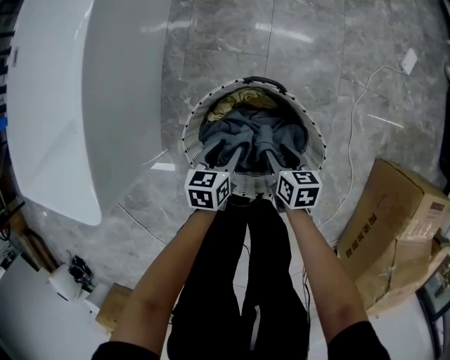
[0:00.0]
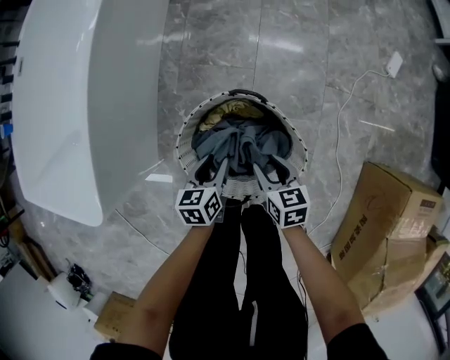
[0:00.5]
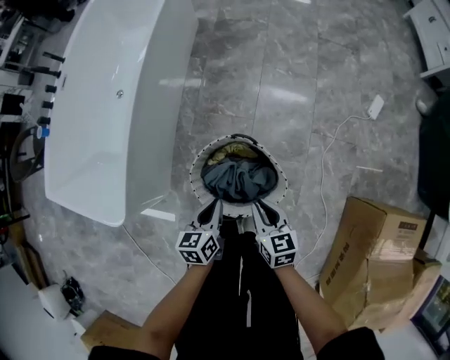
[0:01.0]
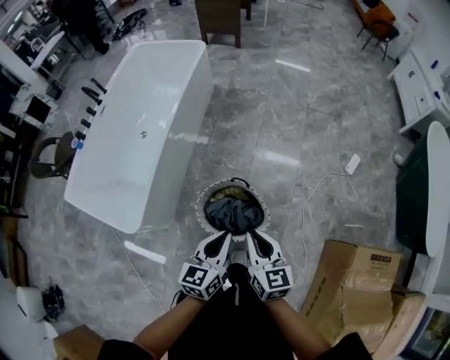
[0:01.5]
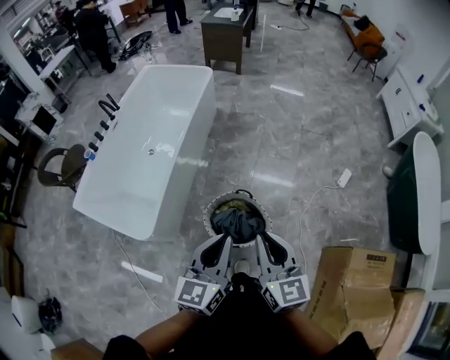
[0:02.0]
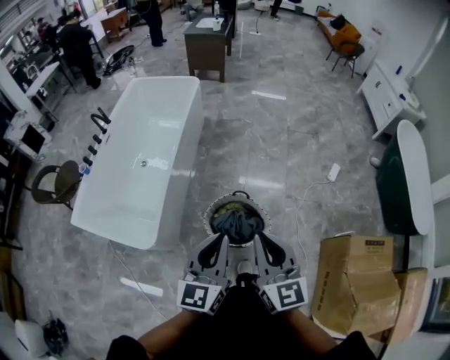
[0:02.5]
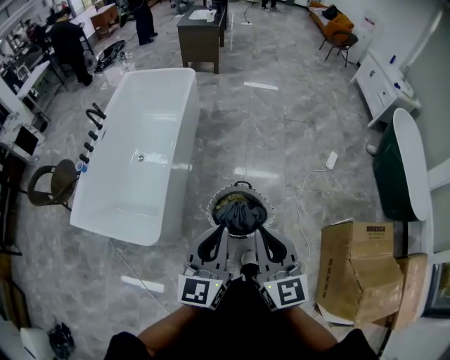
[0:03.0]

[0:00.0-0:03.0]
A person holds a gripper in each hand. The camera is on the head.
0:00.0 to 0:01.5: Both grippers travel together upward, some 60 cm. The right gripper points its fingers roughly 30 degrees further upward, and closes. The left gripper rotates about 30 degrees, and closes up.
0:01.5 to 0:03.0: The grippers both shift upward, to the left and backward by some 30 cm. The right gripper swivels approximately 20 degrees. The left gripper turns by about 20 degrees.

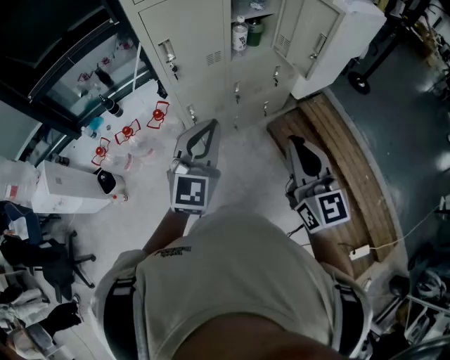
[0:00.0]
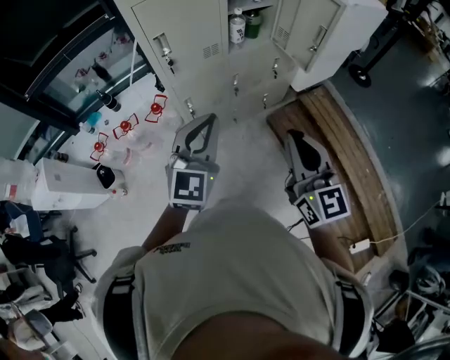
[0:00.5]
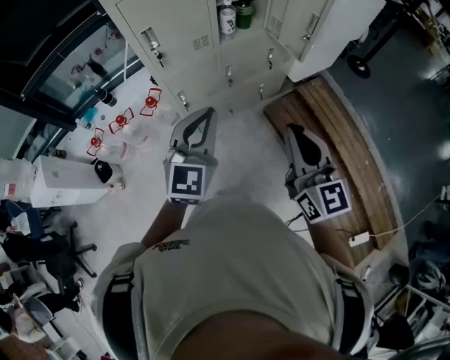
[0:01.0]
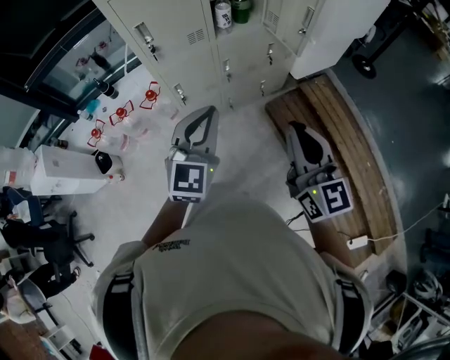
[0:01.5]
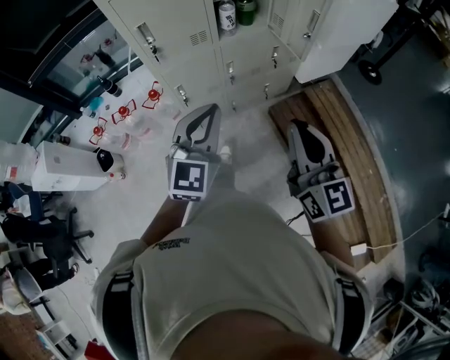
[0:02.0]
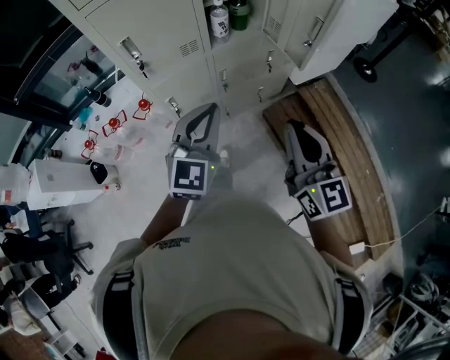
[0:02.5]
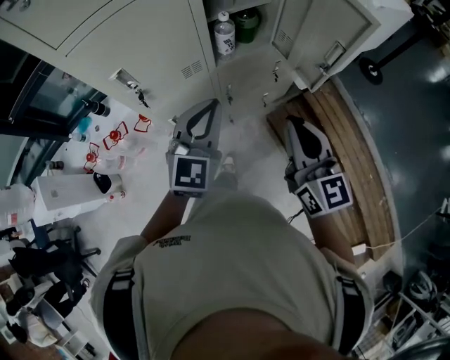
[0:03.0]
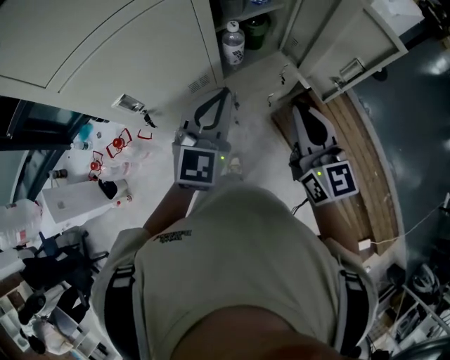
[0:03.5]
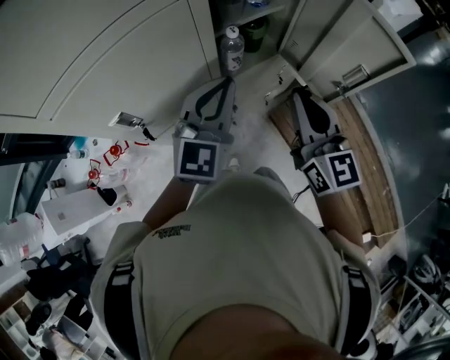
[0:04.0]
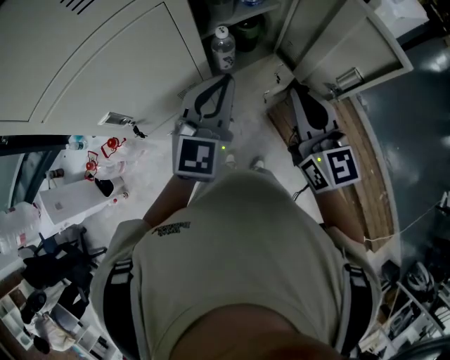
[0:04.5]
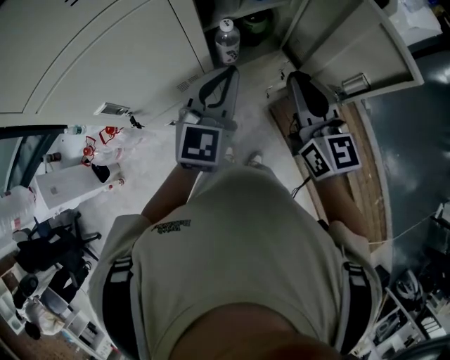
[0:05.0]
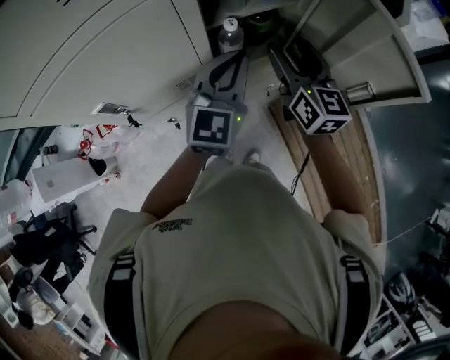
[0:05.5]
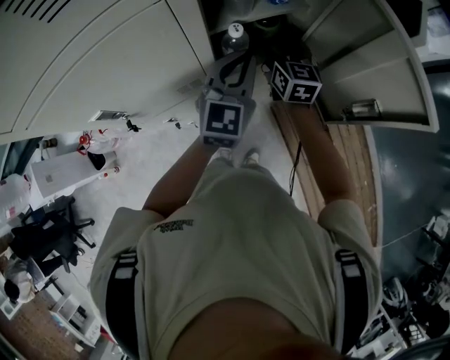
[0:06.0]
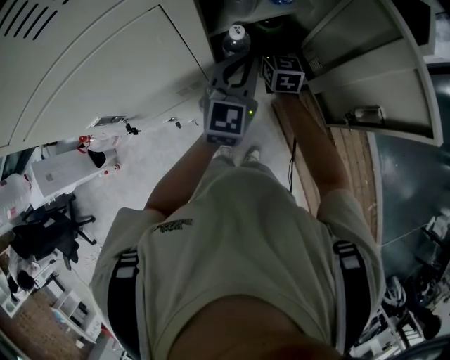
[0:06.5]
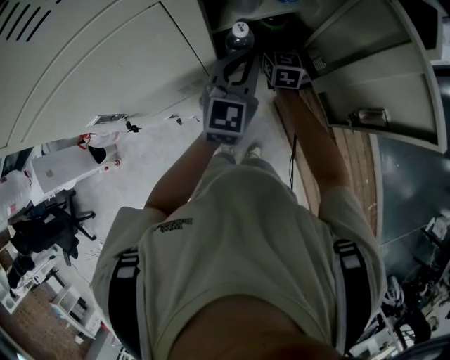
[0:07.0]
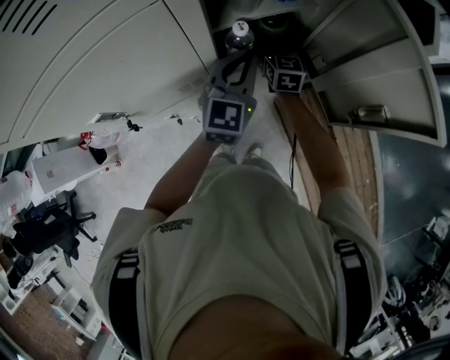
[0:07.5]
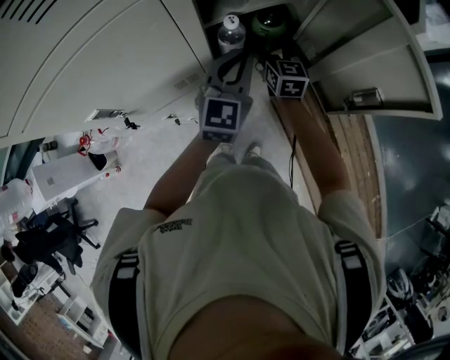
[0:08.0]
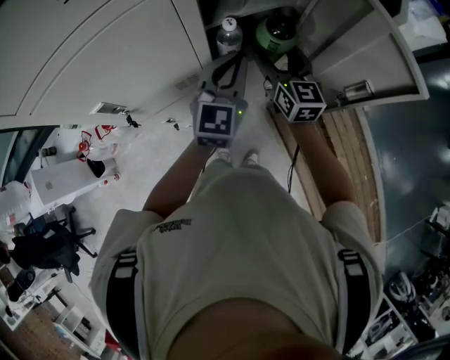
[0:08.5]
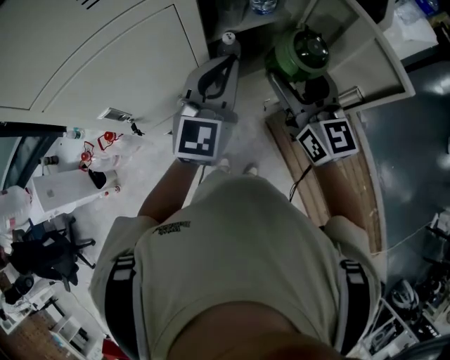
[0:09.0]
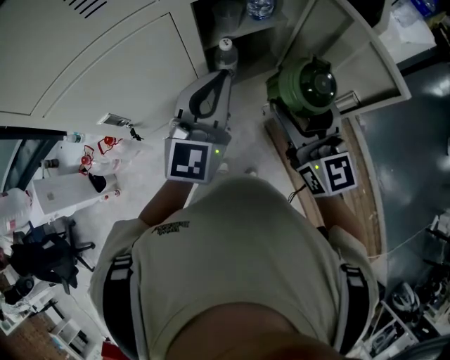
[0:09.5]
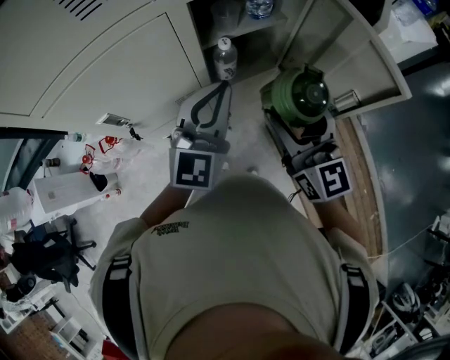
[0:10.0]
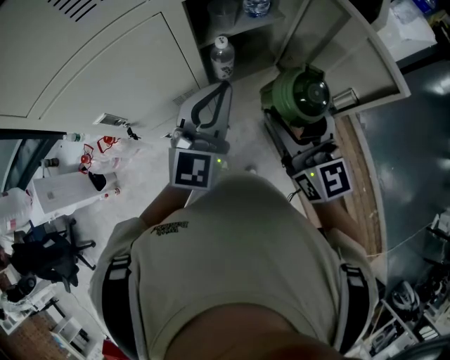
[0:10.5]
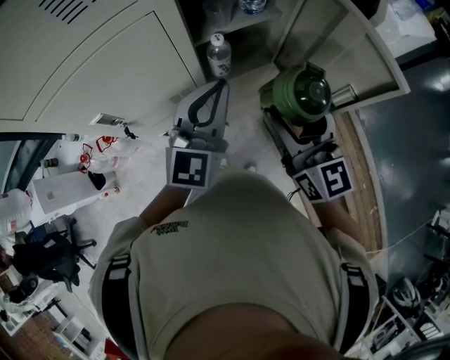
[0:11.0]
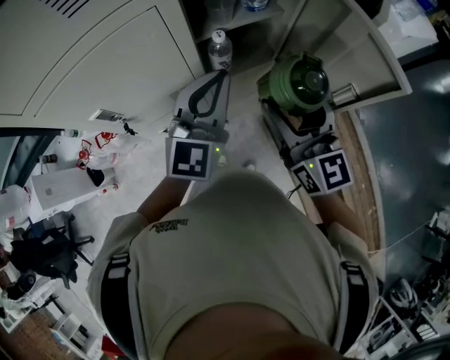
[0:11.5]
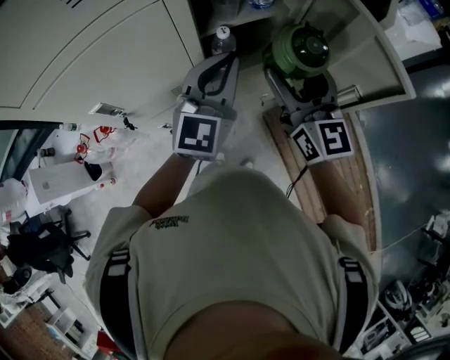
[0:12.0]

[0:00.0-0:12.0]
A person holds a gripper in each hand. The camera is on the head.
0:00.0 to 0:02.0: Both grippers move to the right, roughly 10 cm.
0:02.0 to 0:04.0: Both grippers move forward, roughly 35 cm.
0:04.0 to 0:06.0: The left gripper travels forward, downward and to the right by approximately 15 cm. The right gripper is displaced forward and downward by about 30 cm, and opens up.
0:06.0 to 0:08.0: The right gripper travels downward by some 5 cm.
0:08.0 to 0:10.0: The left gripper is displaced upward and backward by about 15 cm. The right gripper shifts approximately 30 cm upward and backward, and rotates some 20 degrees.
0:10.0 to 0:12.0: The right gripper is displaced forward by about 5 cm.

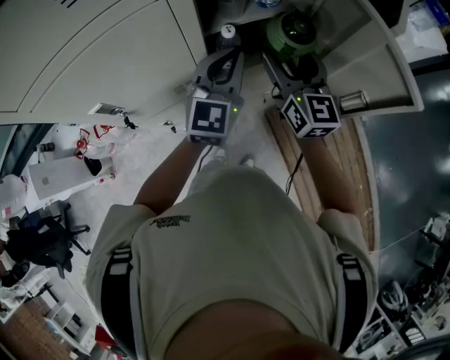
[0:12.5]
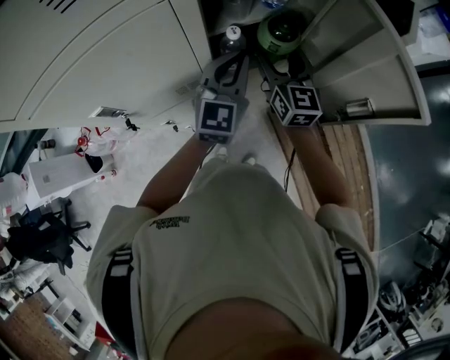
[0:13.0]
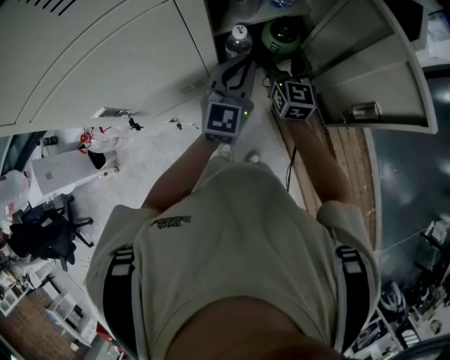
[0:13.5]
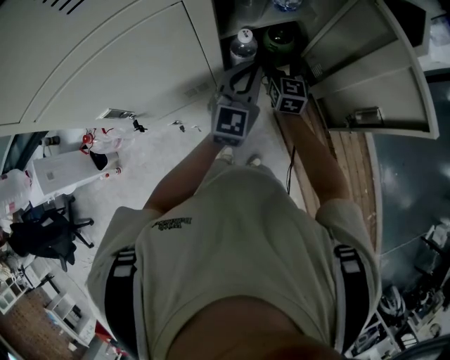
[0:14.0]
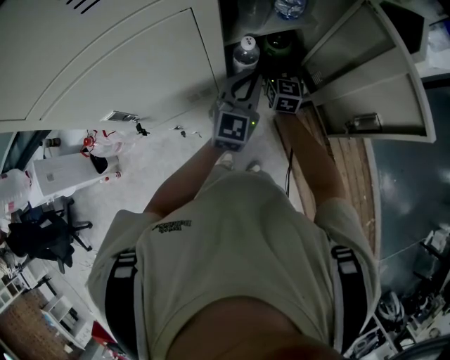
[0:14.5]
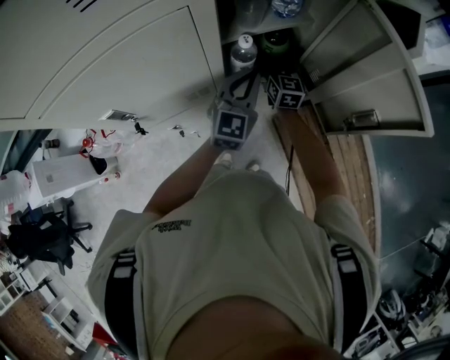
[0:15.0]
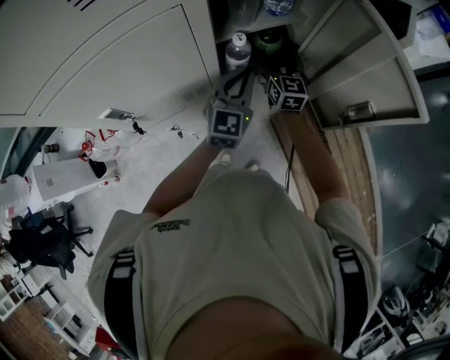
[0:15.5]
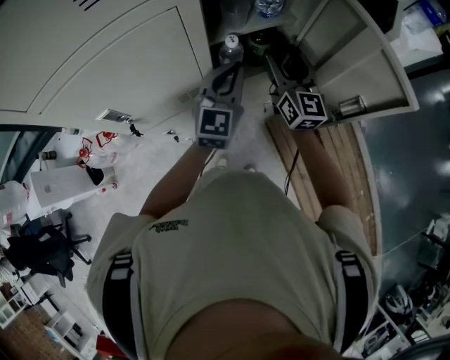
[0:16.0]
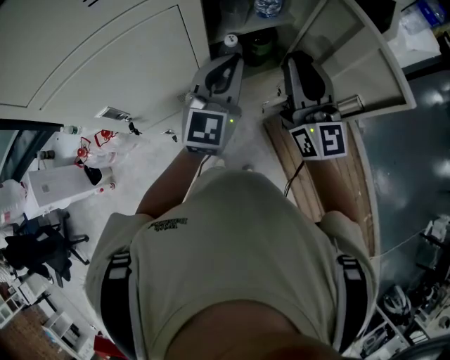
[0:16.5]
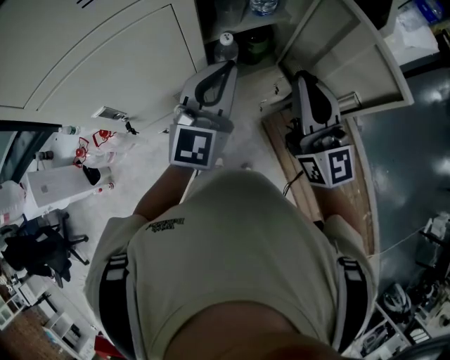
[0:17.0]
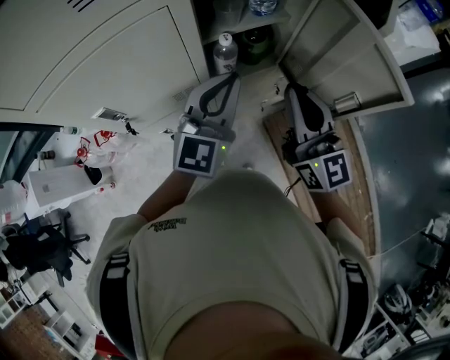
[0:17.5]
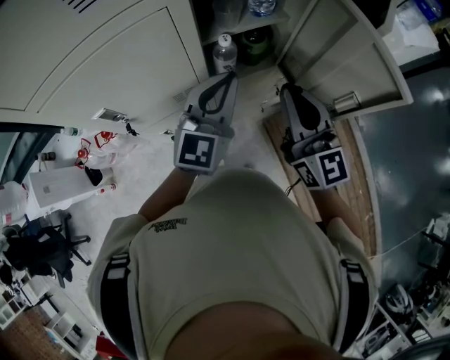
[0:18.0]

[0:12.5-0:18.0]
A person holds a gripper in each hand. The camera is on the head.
0:12.5 to 0:14.5: The right gripper shifts roughly 20 cm downward and forward; the left gripper is displaced downward by roughly 10 cm.
0:14.5 to 0:16.0: The right gripper goes about 15 cm upward and backward.
0:16.0 to 0:18.0: The right gripper shifts roughly 15 cm backward and upward, and closes, while the left gripper is displaced backward and upward by about 10 cm.

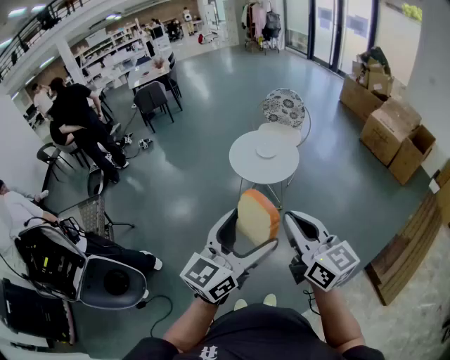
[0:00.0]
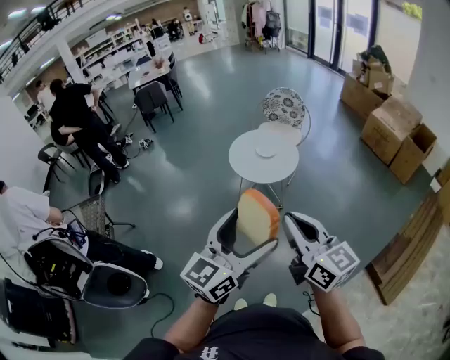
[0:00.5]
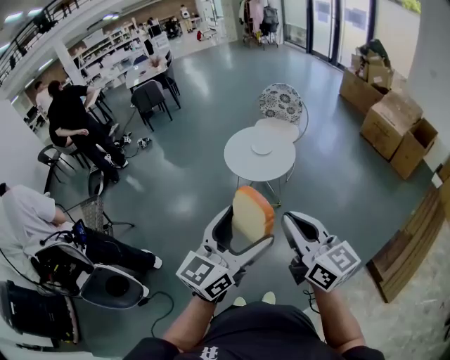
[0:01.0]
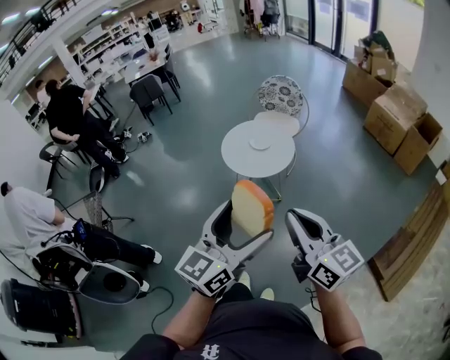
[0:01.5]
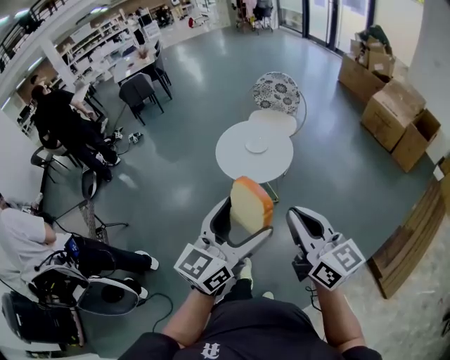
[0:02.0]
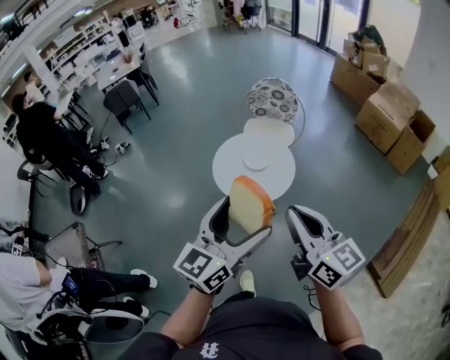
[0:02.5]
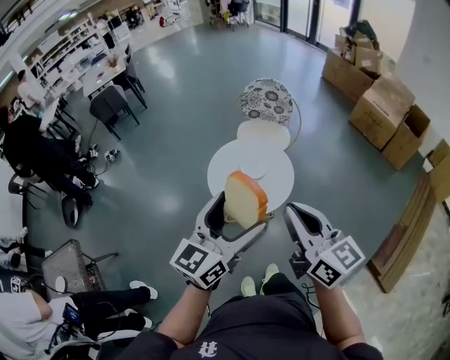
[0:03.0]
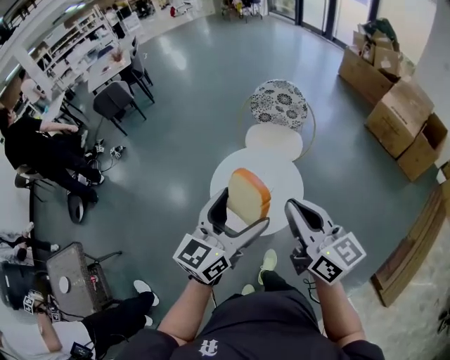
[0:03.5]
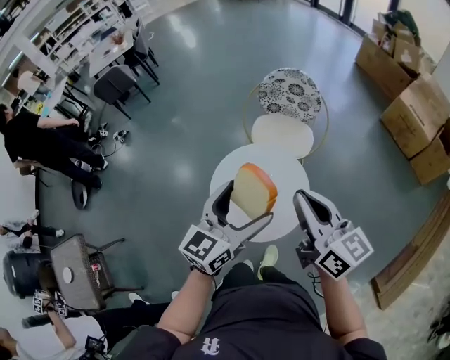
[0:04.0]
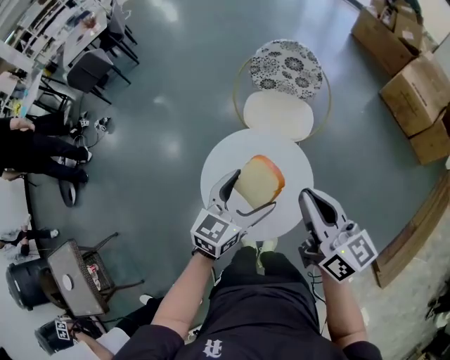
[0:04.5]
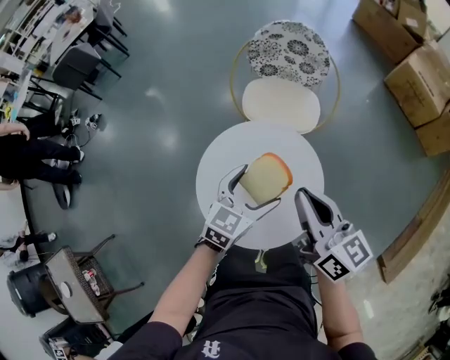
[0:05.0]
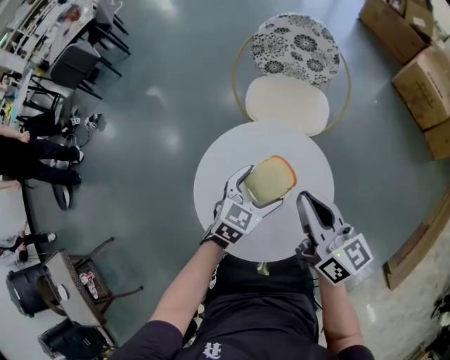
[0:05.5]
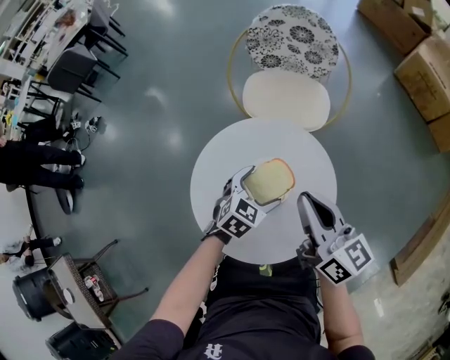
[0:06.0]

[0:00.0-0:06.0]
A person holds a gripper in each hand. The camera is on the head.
0:00.0 to 0:02.0: The left gripper travels forward by roughly 15 cm; the right gripper shifts some 15 cm forward and to the right.
0:02.0 to 0:04.0: Both grippers are carried forward, about 50 cm.
0:04.0 to 0:06.0: The left gripper heads downward, covering roughly 40 cm, and angles its fingers downward, by about 40 degrees. The right gripper travels downward and forward by roughly 30 cm.
